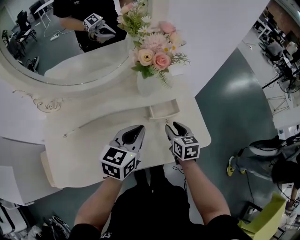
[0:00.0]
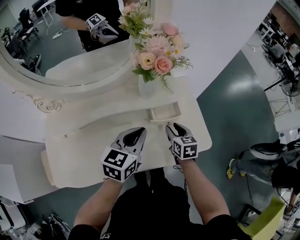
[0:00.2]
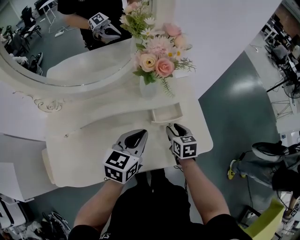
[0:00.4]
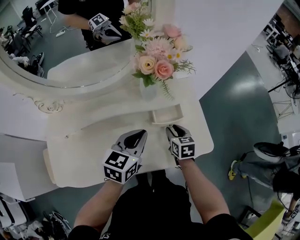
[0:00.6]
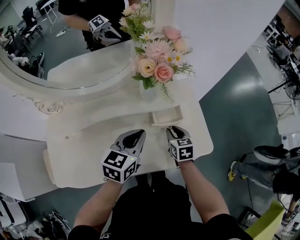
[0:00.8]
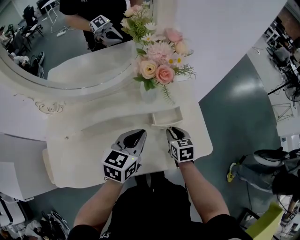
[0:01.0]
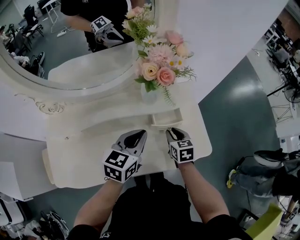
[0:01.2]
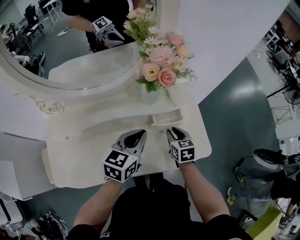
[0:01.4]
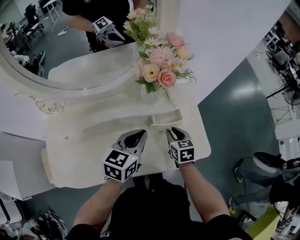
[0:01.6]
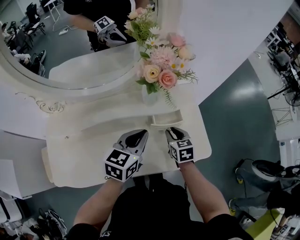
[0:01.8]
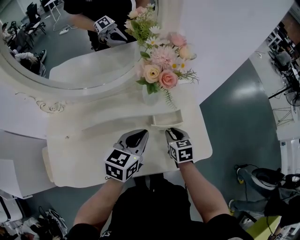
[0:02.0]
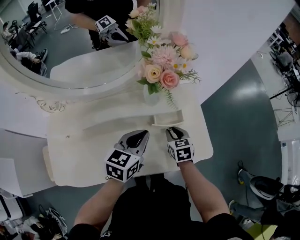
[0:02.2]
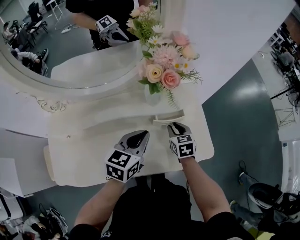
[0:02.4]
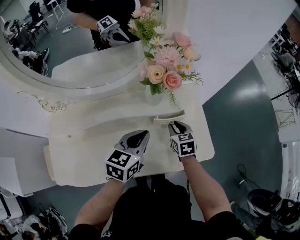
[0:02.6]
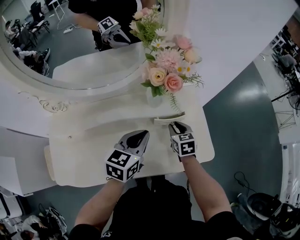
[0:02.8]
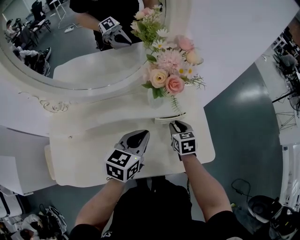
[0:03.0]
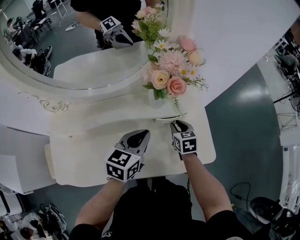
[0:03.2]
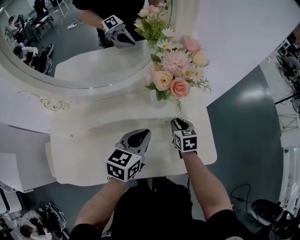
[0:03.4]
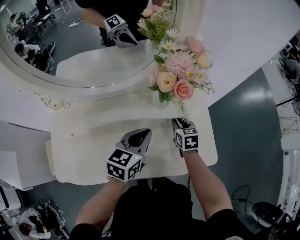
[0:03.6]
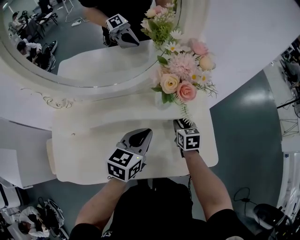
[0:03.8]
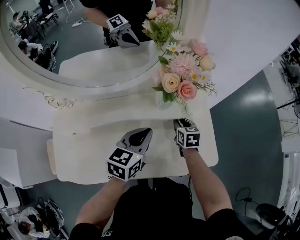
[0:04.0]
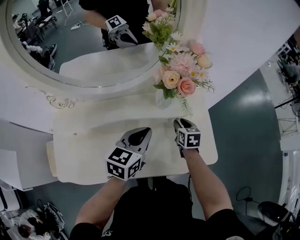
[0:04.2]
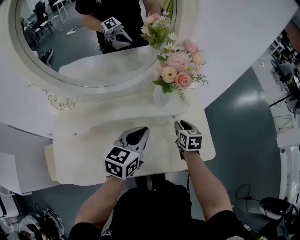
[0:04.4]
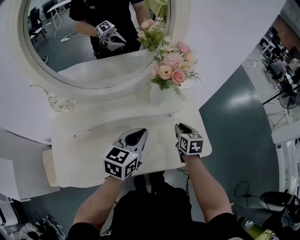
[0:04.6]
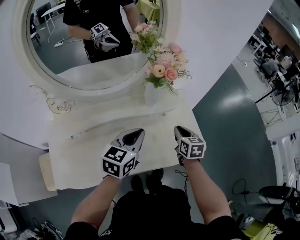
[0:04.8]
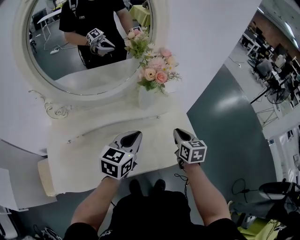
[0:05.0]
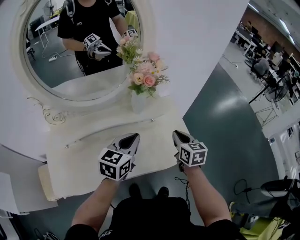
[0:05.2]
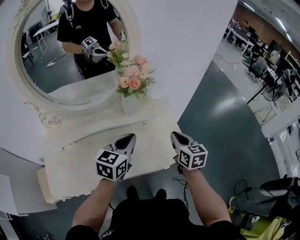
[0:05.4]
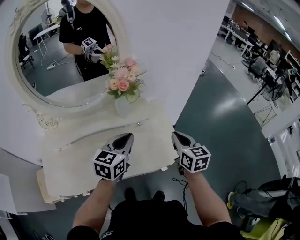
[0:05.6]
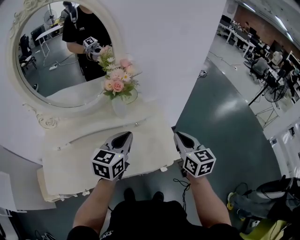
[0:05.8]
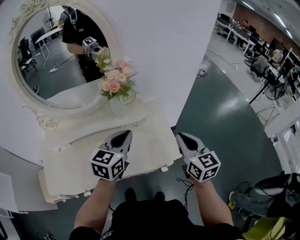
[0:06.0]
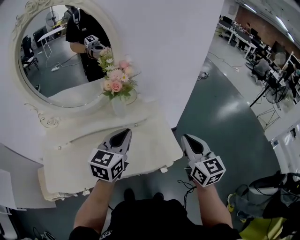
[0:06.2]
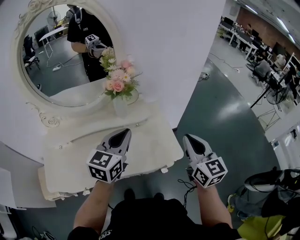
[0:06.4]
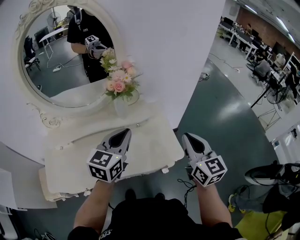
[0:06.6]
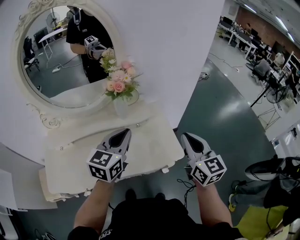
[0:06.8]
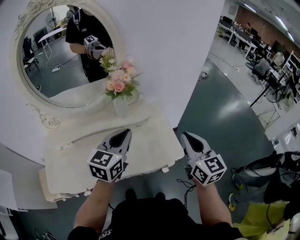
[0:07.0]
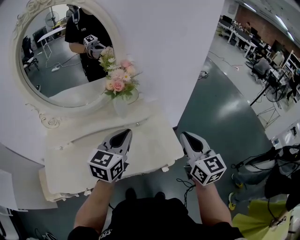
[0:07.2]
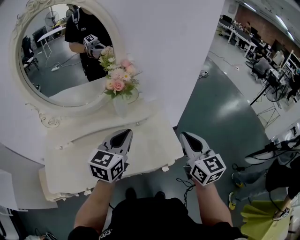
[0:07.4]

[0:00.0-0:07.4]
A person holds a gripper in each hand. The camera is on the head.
0:00.0 to 0:01.4: The grippers make only small movements.
0:01.4 to 0:03.0: The right gripper shifts roughly 5 cm forward.
0:03.0 to 0:04.4: The grippers stay close to where they were, moving slightly.
0:04.4 to 0:06.0: The right gripper is displaced upward, to the right and backward by approximately 35 cm, angles its fingers upward, by about 30 degrees, and closes. Meanwhile the left gripper moves to the right and upward, about 15 cm.
0:06.0 to 0:07.4: There are only small adjustments of the grippers.

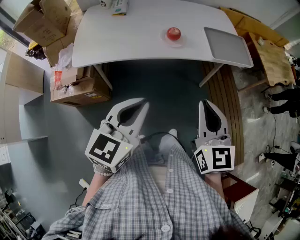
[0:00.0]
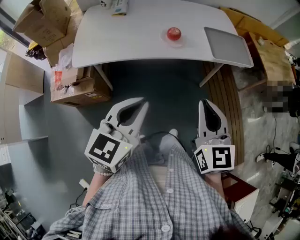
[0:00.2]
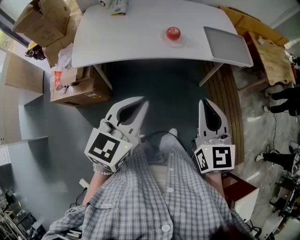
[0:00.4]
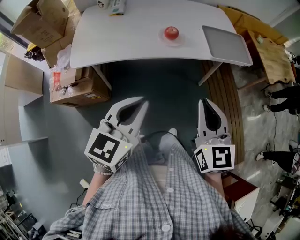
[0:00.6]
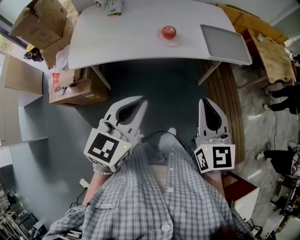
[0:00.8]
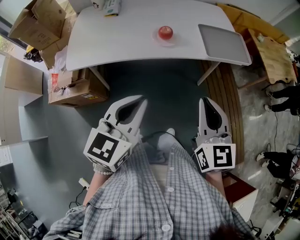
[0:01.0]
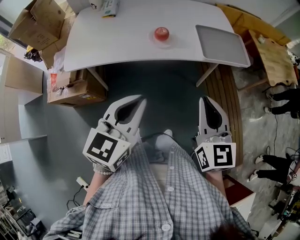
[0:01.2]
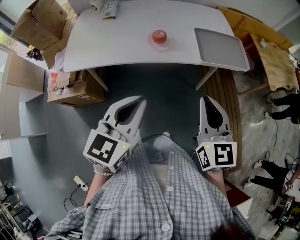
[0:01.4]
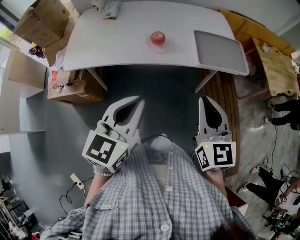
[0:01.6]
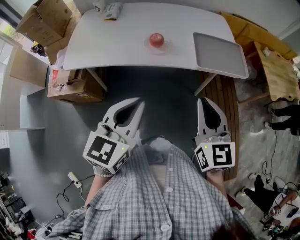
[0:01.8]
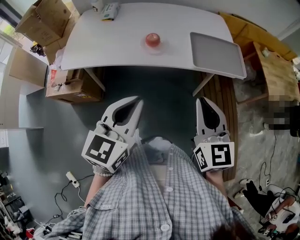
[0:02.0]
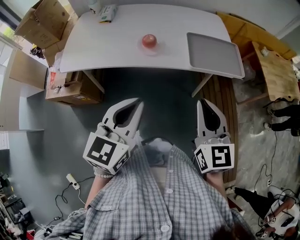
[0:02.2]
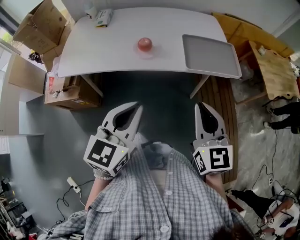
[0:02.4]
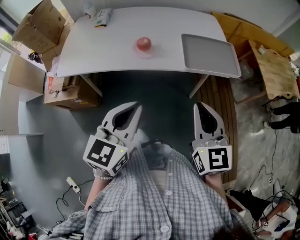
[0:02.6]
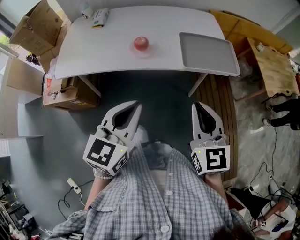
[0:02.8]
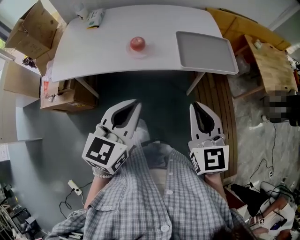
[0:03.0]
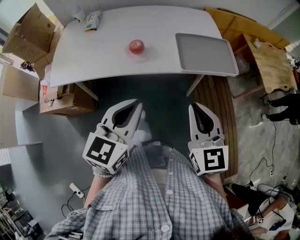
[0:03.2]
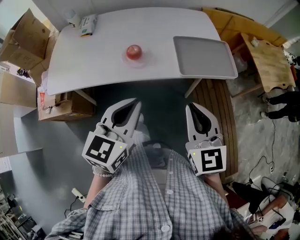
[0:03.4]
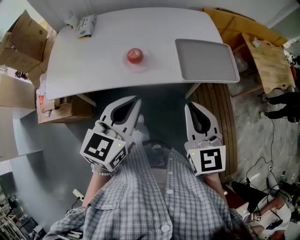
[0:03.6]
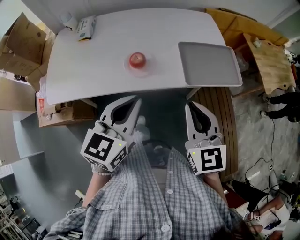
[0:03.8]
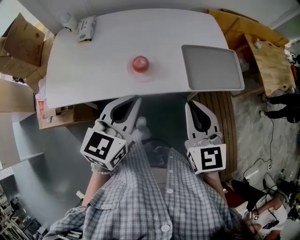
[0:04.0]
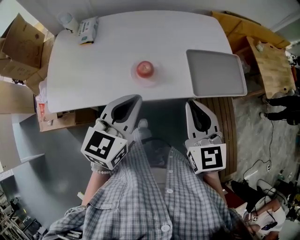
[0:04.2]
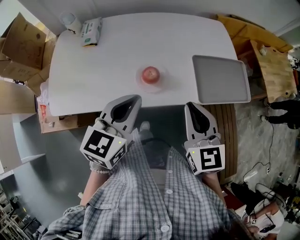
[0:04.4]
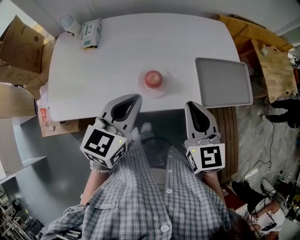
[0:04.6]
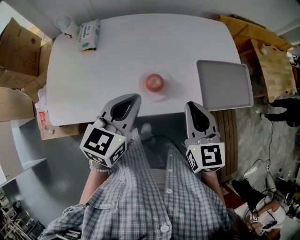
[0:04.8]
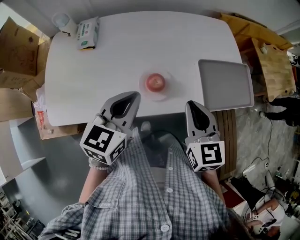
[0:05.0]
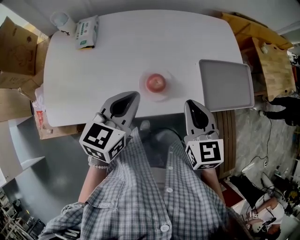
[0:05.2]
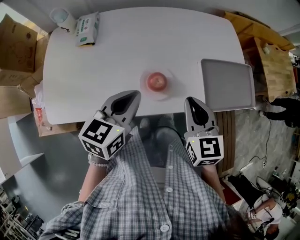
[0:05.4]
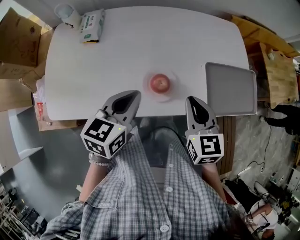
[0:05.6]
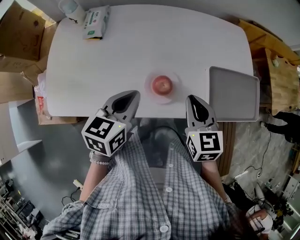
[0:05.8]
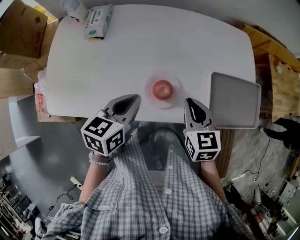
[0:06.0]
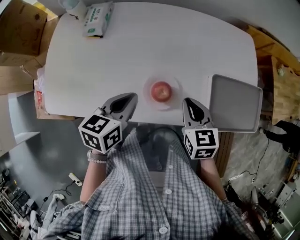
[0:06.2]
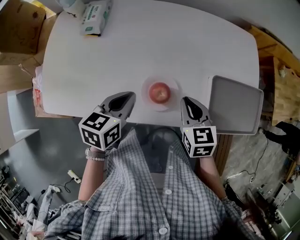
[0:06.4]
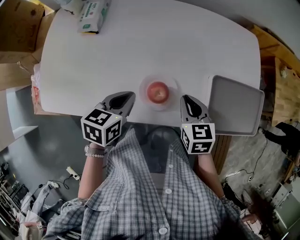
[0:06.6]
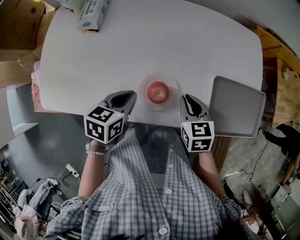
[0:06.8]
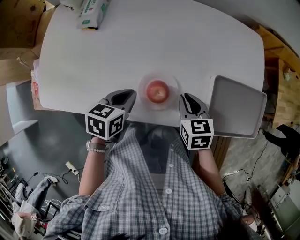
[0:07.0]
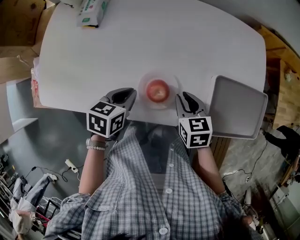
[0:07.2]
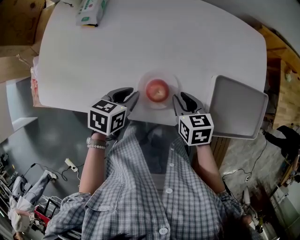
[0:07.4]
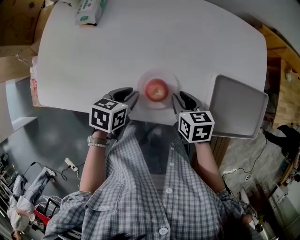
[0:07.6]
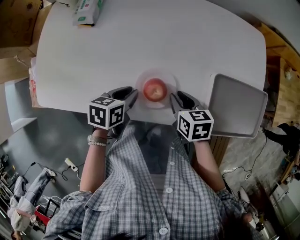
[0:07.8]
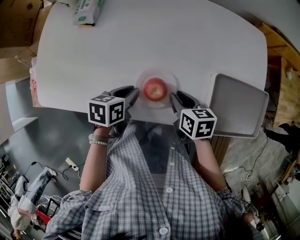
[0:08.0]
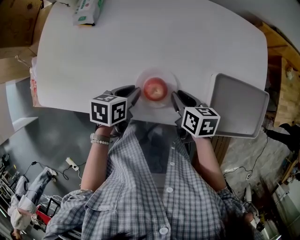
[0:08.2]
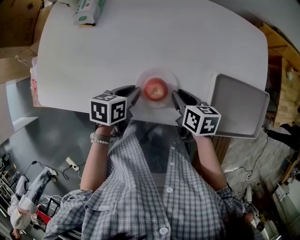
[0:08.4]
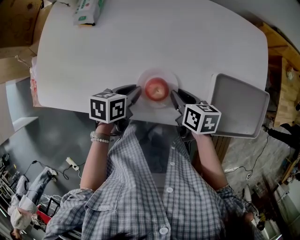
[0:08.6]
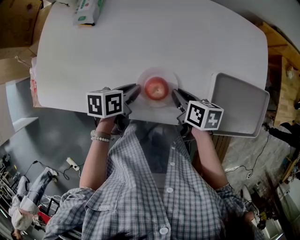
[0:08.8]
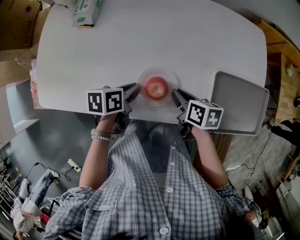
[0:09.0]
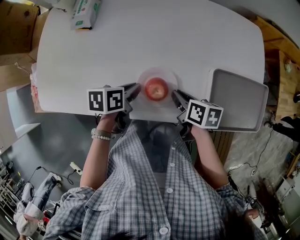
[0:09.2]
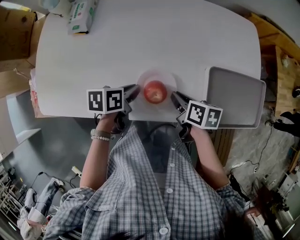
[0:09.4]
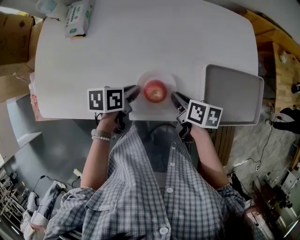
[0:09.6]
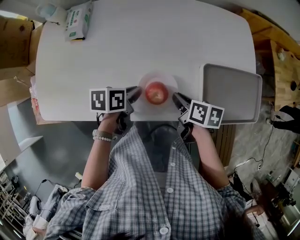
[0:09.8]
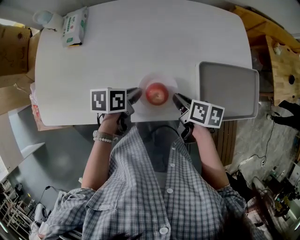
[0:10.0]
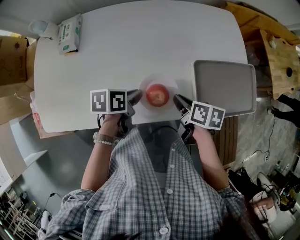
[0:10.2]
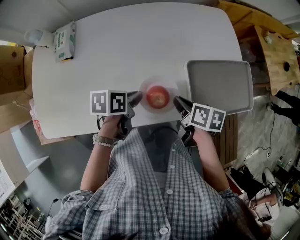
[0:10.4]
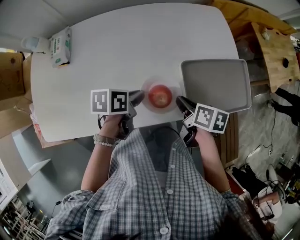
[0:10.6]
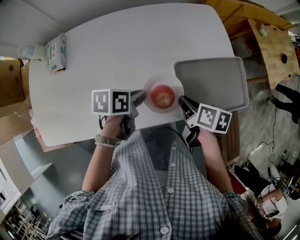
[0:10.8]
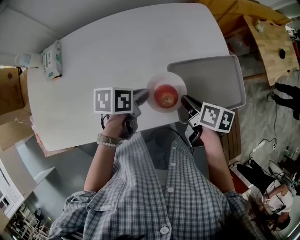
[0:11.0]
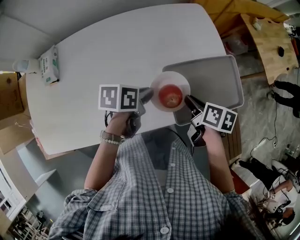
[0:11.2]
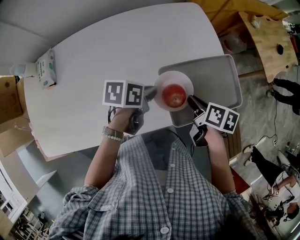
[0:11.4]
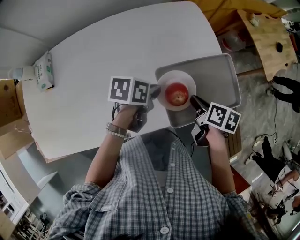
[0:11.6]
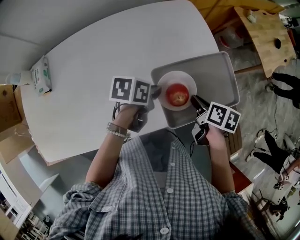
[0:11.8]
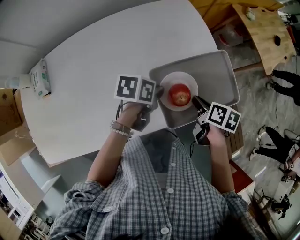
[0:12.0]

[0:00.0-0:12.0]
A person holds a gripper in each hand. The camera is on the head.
0:00.0 to 0:01.6: Both grippers travel together to the right and forward, roughly 15 cm.
0:01.6 to 0:03.0: Both grippers travel together to the right, approximately 5 cm.
0:03.0 to 0:04.4: Both grippers move forward and to the left, about 25 cm.
0:04.4 to 0:06.0: The left gripper goes roughly 15 cm downward, forward and to the left, and swivels roughly 20 degrees; the right gripper goes about 15 cm downward and forward.
0:06.0 to 0:07.6: The grippers both shift downward by about 10 cm. The left gripper turns by roughly 20 degrees. The right gripper turns by roughly 30 degrees.
0:07.6 to 0:09.0: The right gripper turns by about 20 degrees.
0:09.0 to 0:10.4: The two grippers go approximately 5 cm to the right.
0:10.4 to 0:12.0: The two grippers go roughly 20 cm to the right and forward. The left gripper turns by approximately 20 degrees.

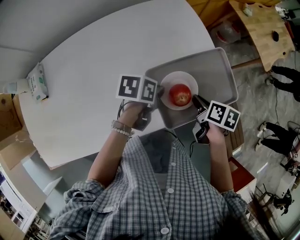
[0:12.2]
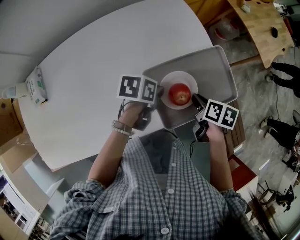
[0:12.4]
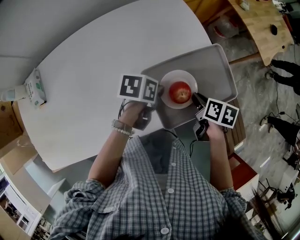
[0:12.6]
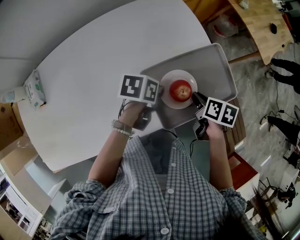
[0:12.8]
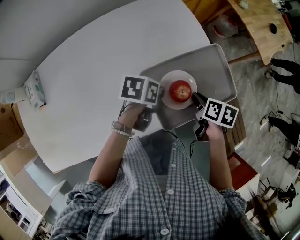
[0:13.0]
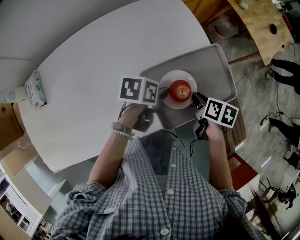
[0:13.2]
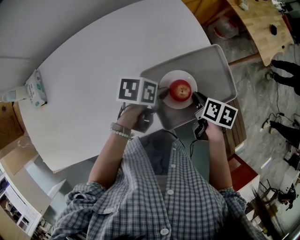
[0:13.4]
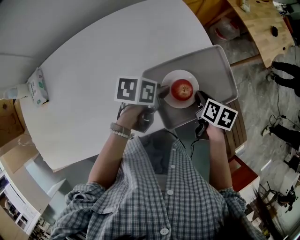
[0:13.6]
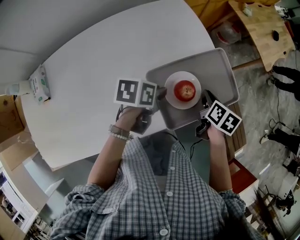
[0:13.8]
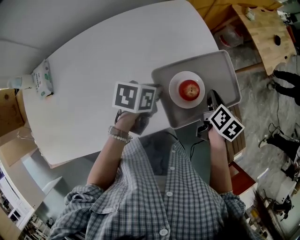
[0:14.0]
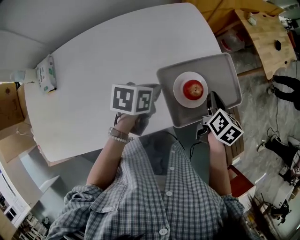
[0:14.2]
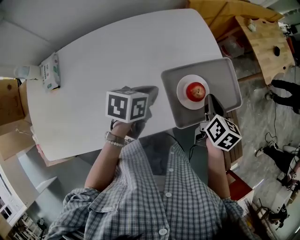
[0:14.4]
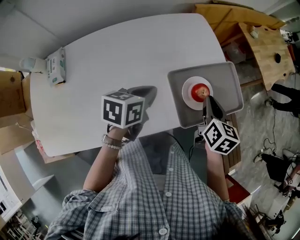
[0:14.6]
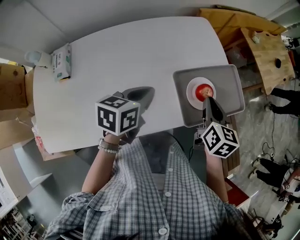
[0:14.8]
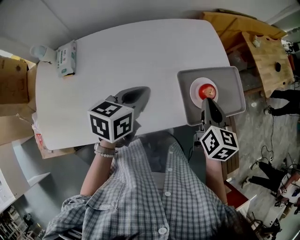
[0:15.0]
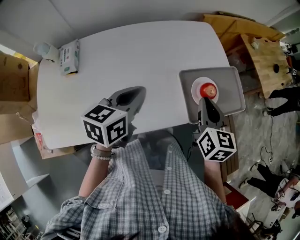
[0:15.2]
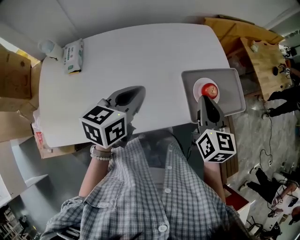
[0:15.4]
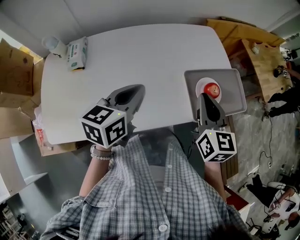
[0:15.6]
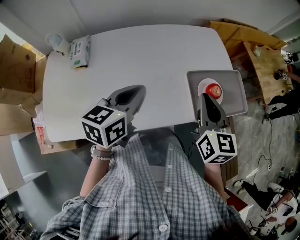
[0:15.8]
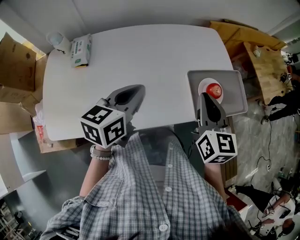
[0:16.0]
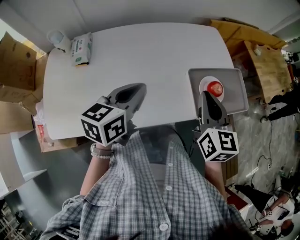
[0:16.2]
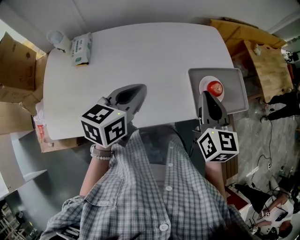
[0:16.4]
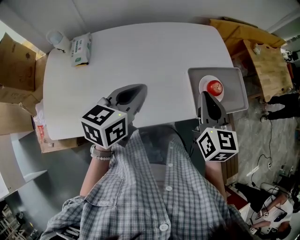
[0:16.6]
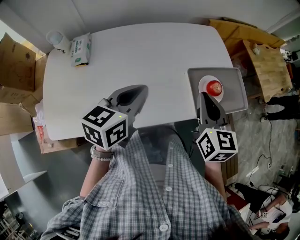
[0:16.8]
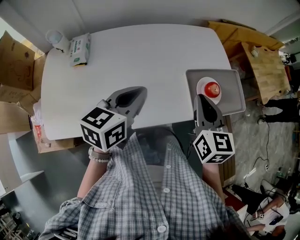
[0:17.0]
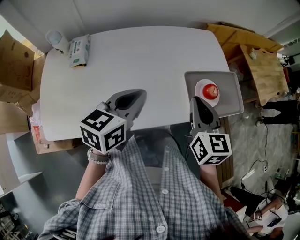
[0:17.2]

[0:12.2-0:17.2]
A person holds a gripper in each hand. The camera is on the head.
0:12.2 to 0:13.8: The right gripper moves approximately 5 cm.
0:13.8 to 0:15.6: The left gripper ends up roughly 30 cm from where it was, changes its angle by about 50 degrees, and closes its fingers, while the right gripper changes place by some 30 cm, and tilts its fingers some 30 degrees upward.
0:15.6 to 0:17.2: The grippers stay close to where they were, moving slightly.
